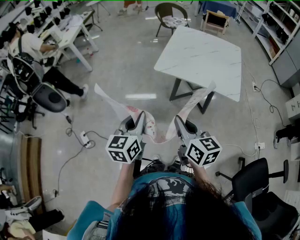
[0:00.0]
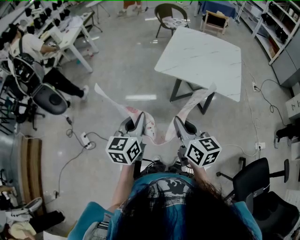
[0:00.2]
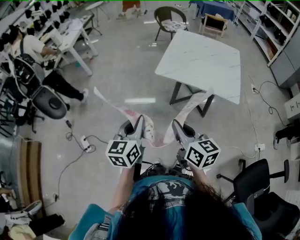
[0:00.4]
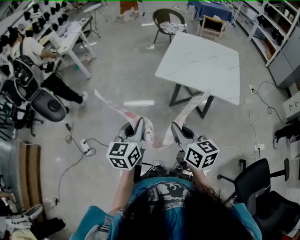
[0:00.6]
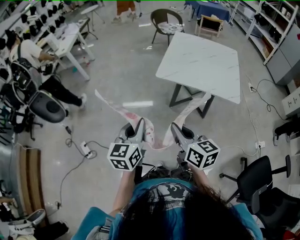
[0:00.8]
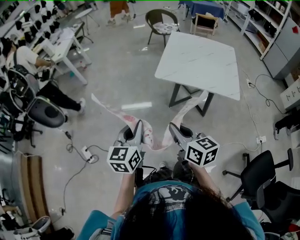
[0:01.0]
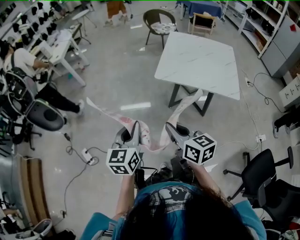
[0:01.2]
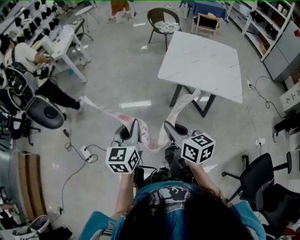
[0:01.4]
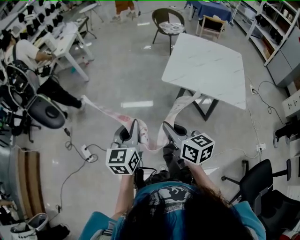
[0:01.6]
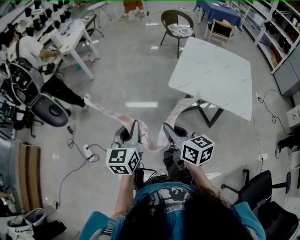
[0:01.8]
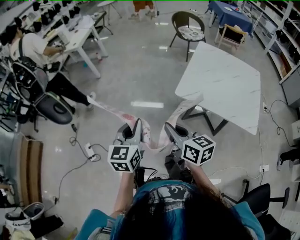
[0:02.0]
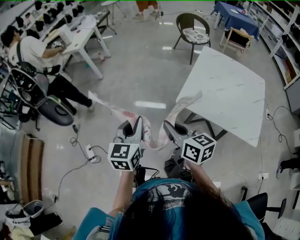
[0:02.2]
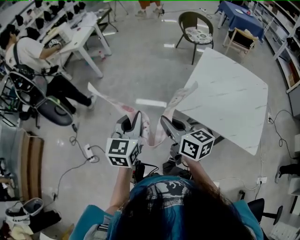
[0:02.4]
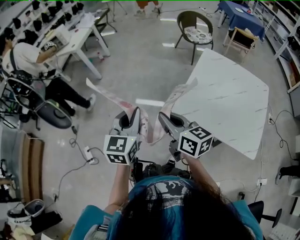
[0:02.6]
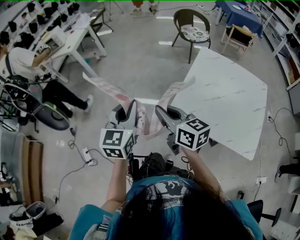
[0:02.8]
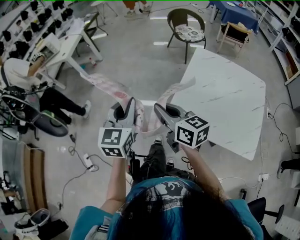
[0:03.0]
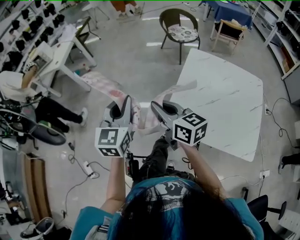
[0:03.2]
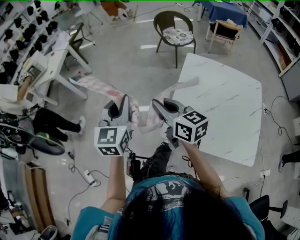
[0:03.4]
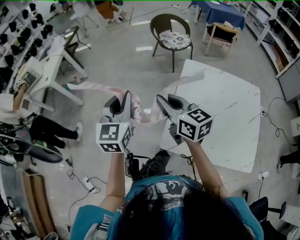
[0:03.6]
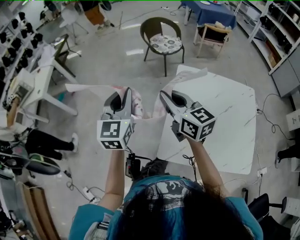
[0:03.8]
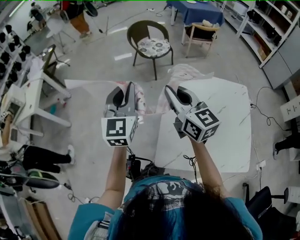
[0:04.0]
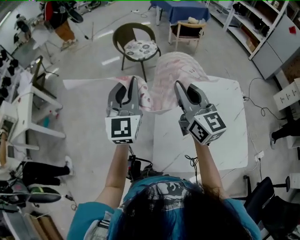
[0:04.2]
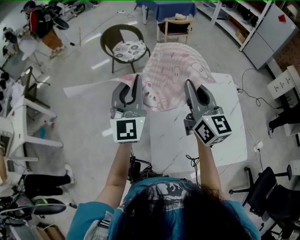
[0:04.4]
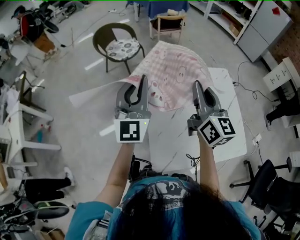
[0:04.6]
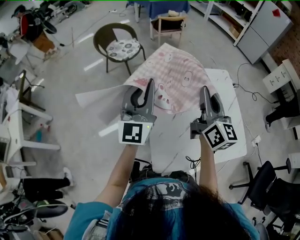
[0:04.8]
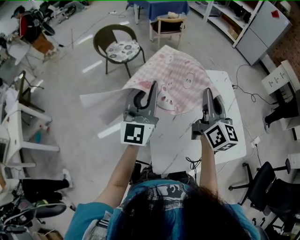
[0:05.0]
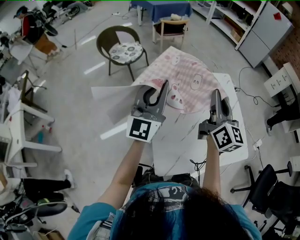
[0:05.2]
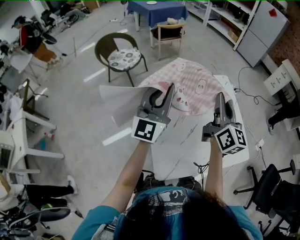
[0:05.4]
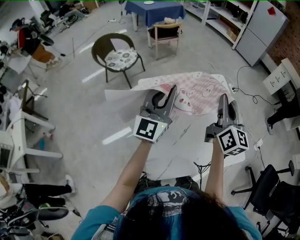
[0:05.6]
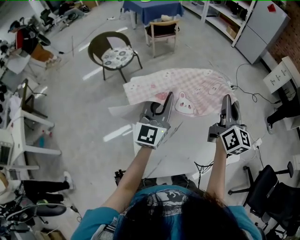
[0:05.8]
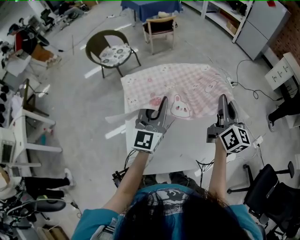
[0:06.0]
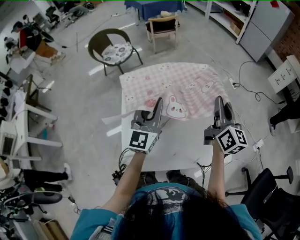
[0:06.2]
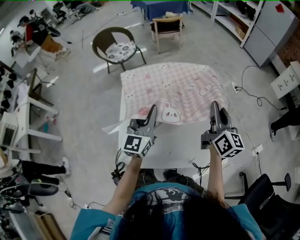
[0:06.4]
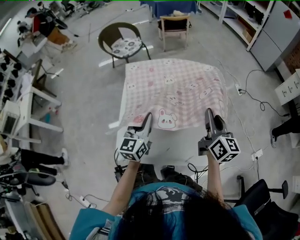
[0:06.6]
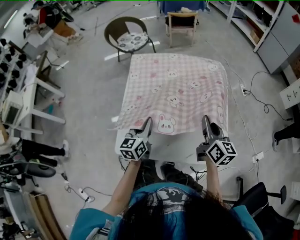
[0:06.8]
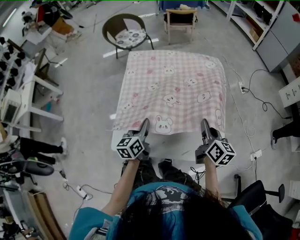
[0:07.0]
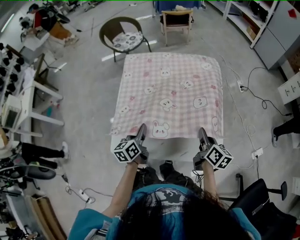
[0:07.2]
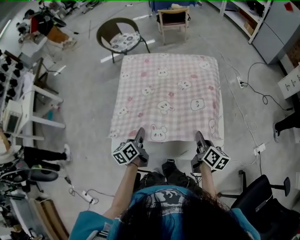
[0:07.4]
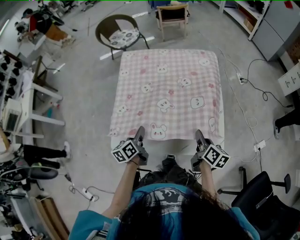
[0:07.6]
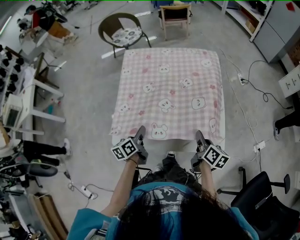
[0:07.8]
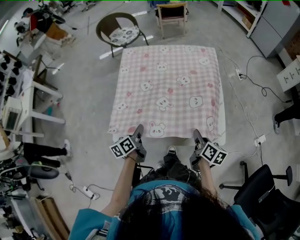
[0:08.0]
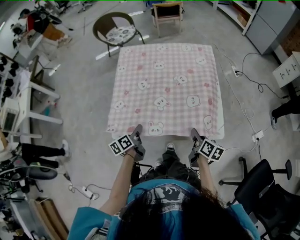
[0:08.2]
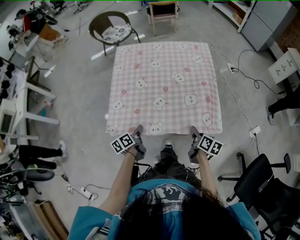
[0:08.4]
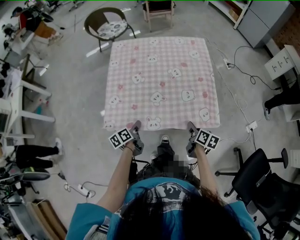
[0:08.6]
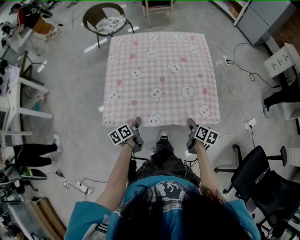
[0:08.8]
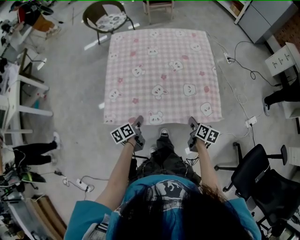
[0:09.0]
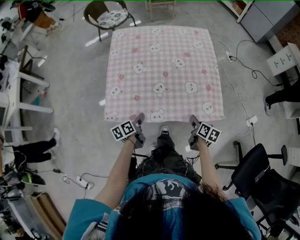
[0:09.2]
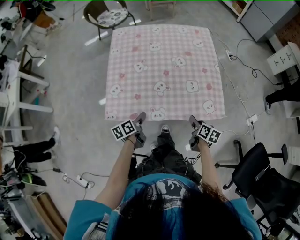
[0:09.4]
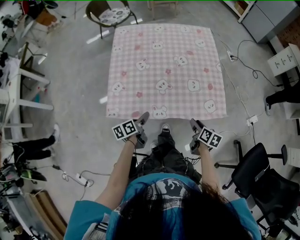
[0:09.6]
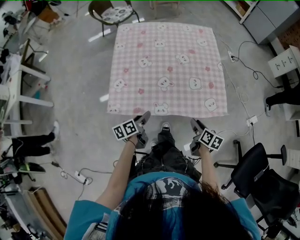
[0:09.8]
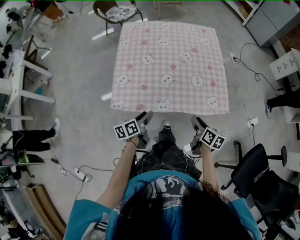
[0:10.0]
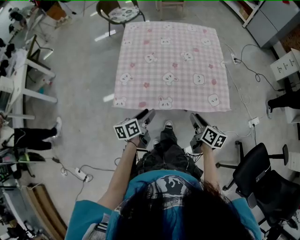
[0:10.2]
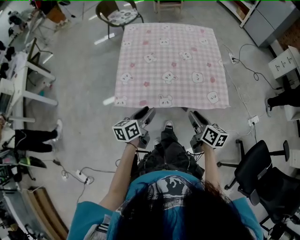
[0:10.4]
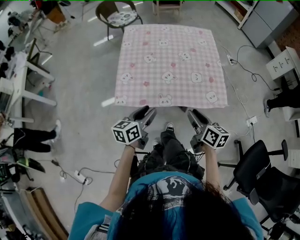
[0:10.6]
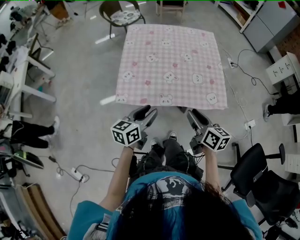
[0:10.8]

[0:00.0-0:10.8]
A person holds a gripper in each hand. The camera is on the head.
0:00.0 to 0:01.6: The grippers both shift to the left and forward by roughly 10 cm.
0:01.6 to 0:03.0: The left gripper heads forward and to the right, covering about 30 cm. The right gripper goes roughly 30 cm forward.
0:03.0 to 0:04.6: The right gripper moves about 40 cm, and rotates about 60 degrees, while the left gripper changes place by some 40 cm, and points its fingers approximately 30 degrees further upward.
0:04.6 to 0:06.2: The left gripper is displaced to the right and downward by some 25 cm. Meanwhile the right gripper is displaced to the right by approximately 25 cm.
0:06.2 to 0:07.8: The grippers both shift downward and backward by approximately 30 cm. The left gripper rolls counterclockwise, seen from behind, by approximately 50 degrees. The right gripper changes its angle by some 40 degrees.
0:07.8 to 0:09.2: Both grippers move downward and backward, some 10 cm.
0:09.2 to 0:10.8: The left gripper heads upward and backward, covering approximately 20 cm, rotates about 40 degrees, and opens up. The right gripper shifts approximately 25 cm upward, to the left and backward, and turns by approximately 30 degrees.

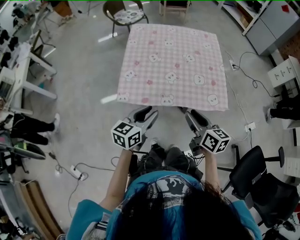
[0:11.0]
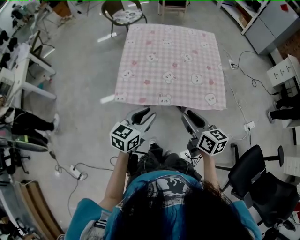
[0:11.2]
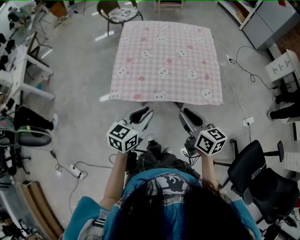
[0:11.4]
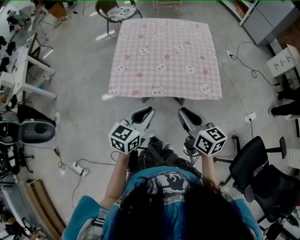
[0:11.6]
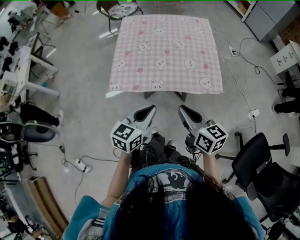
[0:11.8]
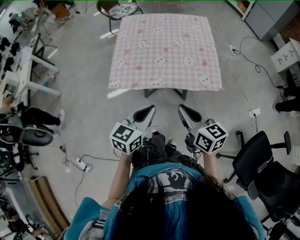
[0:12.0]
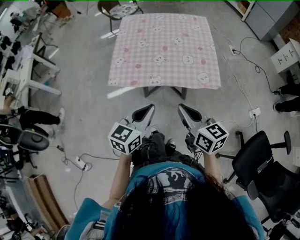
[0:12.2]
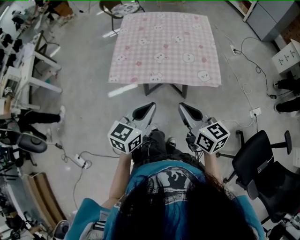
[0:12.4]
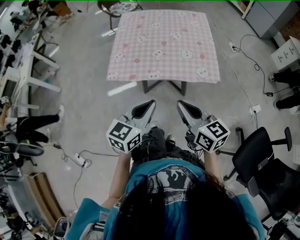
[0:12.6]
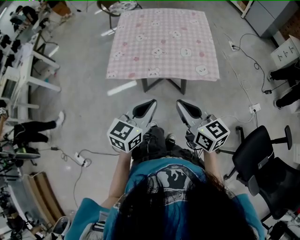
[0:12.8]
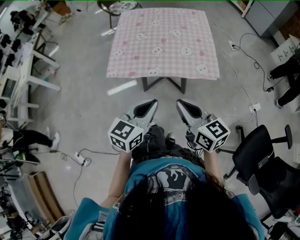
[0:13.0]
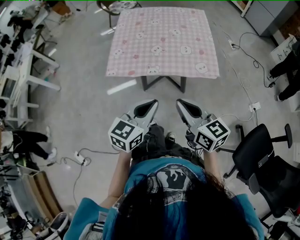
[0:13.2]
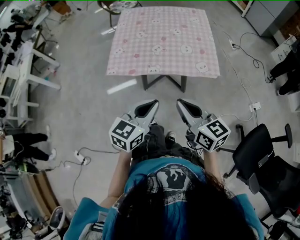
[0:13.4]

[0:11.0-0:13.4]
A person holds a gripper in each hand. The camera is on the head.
0:11.0 to 0:12.2: The left gripper heads backward and to the right, covering about 10 cm, and closes up, while the right gripper travels backward by some 10 cm, and closes.
0:12.2 to 0:13.4: The left gripper moves some 5 cm.

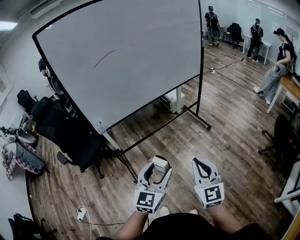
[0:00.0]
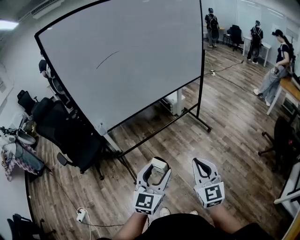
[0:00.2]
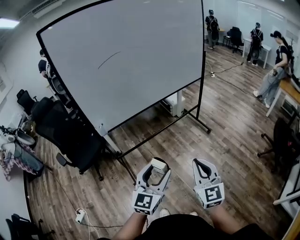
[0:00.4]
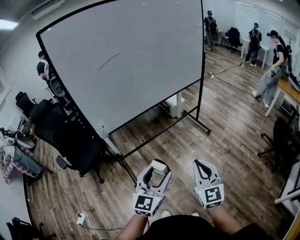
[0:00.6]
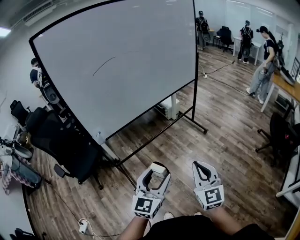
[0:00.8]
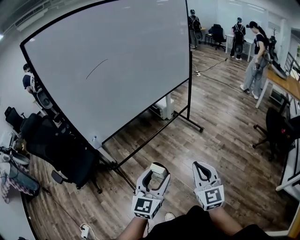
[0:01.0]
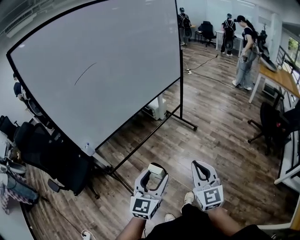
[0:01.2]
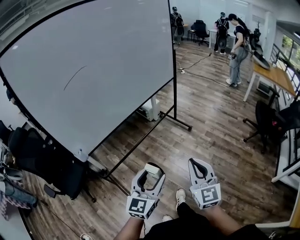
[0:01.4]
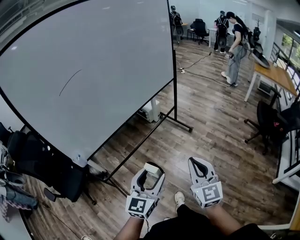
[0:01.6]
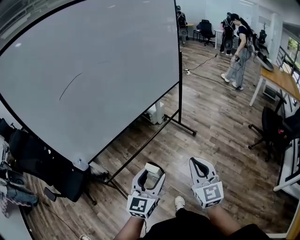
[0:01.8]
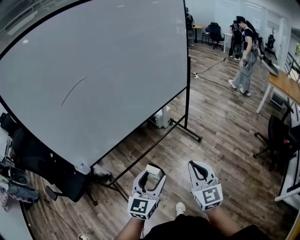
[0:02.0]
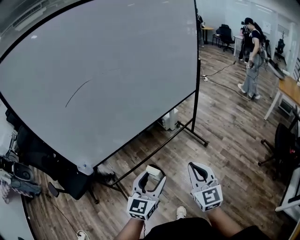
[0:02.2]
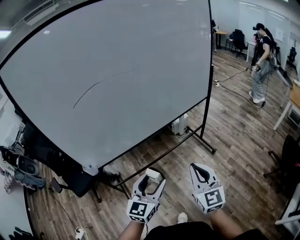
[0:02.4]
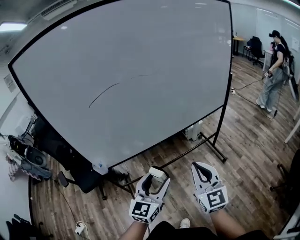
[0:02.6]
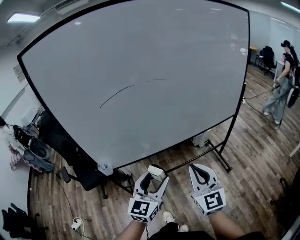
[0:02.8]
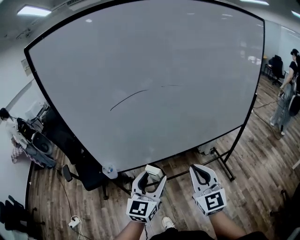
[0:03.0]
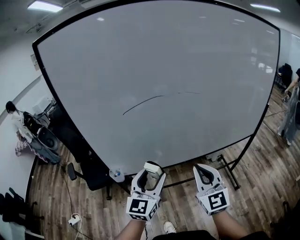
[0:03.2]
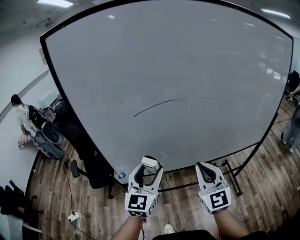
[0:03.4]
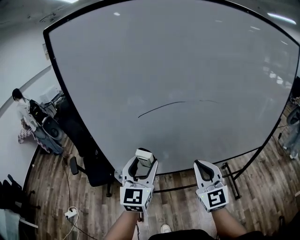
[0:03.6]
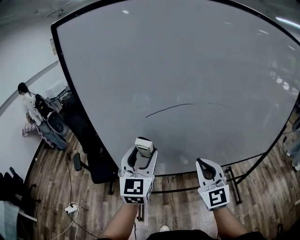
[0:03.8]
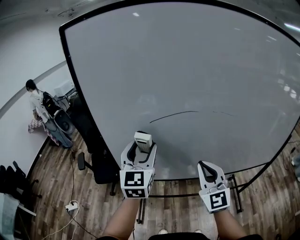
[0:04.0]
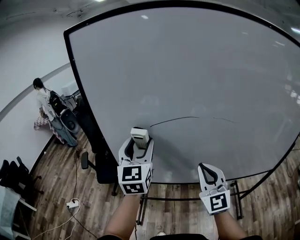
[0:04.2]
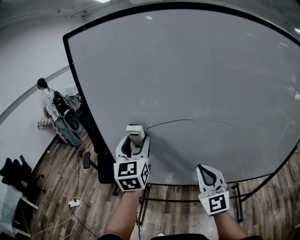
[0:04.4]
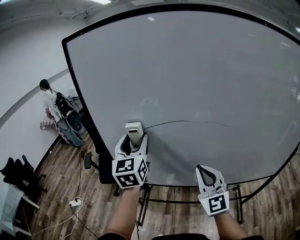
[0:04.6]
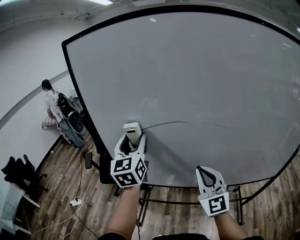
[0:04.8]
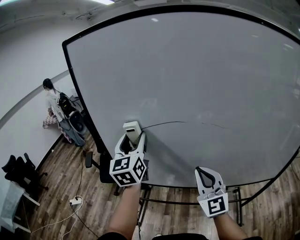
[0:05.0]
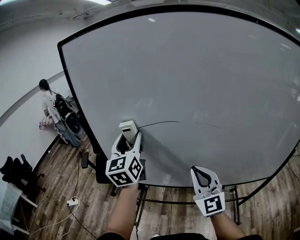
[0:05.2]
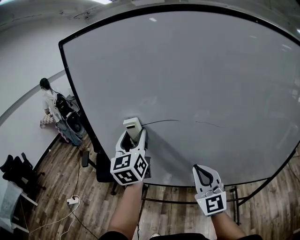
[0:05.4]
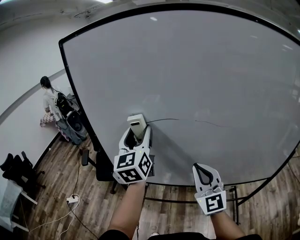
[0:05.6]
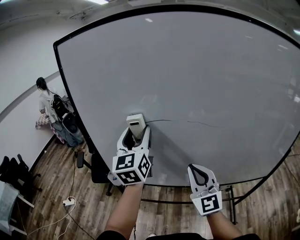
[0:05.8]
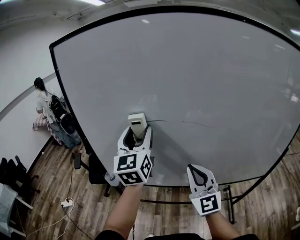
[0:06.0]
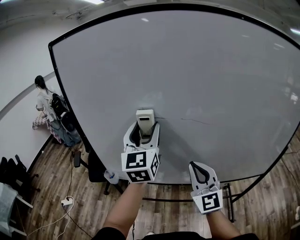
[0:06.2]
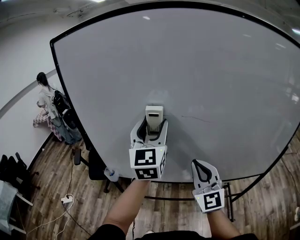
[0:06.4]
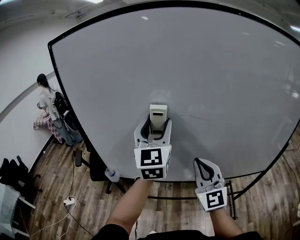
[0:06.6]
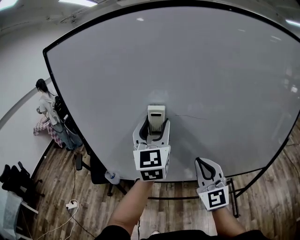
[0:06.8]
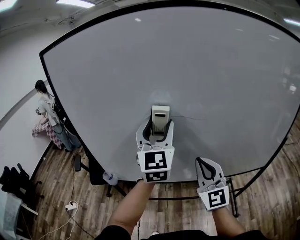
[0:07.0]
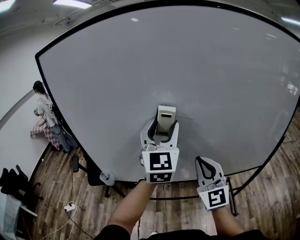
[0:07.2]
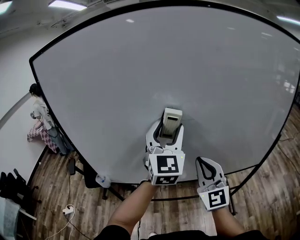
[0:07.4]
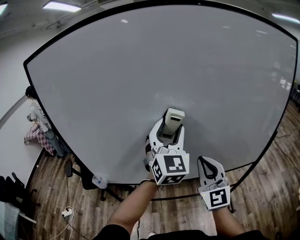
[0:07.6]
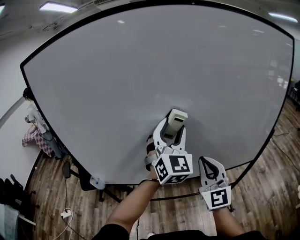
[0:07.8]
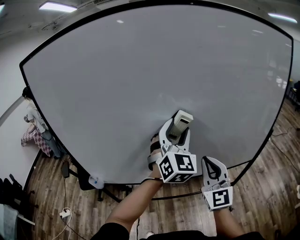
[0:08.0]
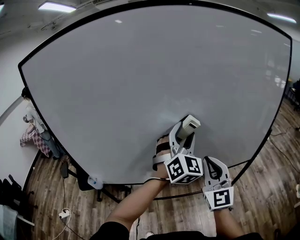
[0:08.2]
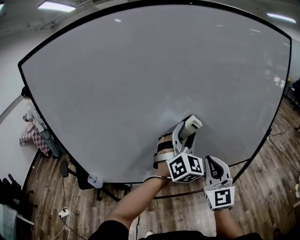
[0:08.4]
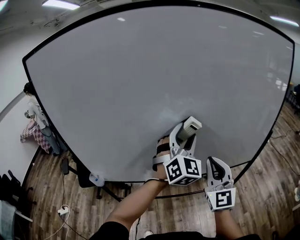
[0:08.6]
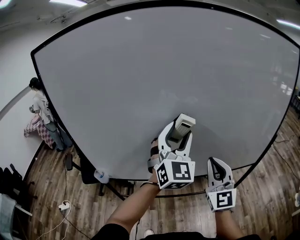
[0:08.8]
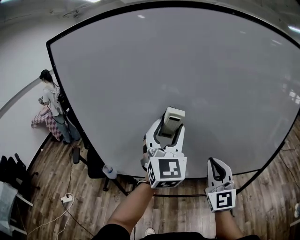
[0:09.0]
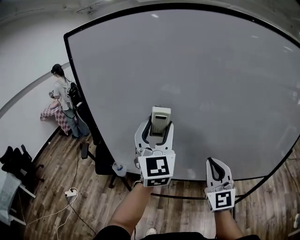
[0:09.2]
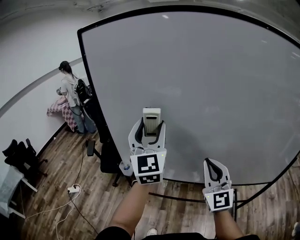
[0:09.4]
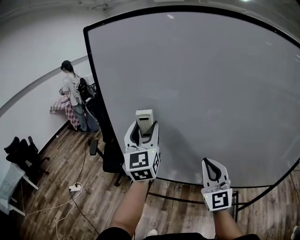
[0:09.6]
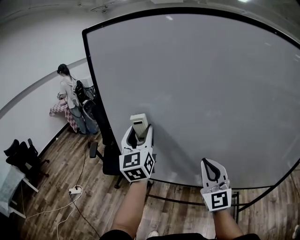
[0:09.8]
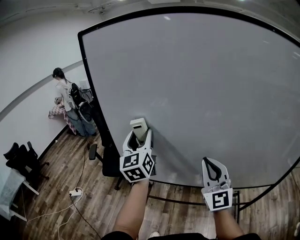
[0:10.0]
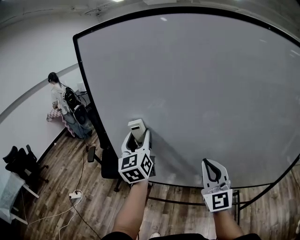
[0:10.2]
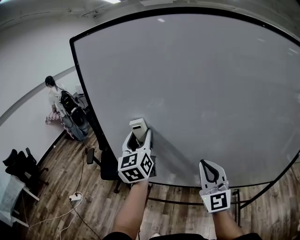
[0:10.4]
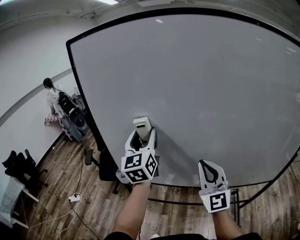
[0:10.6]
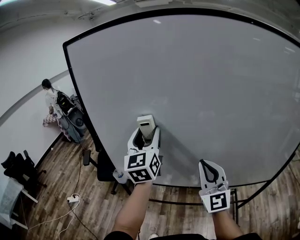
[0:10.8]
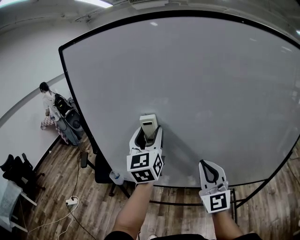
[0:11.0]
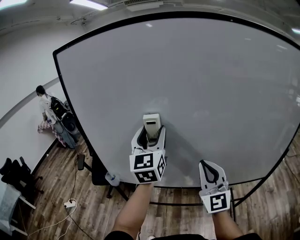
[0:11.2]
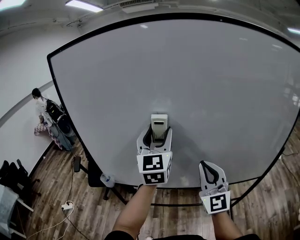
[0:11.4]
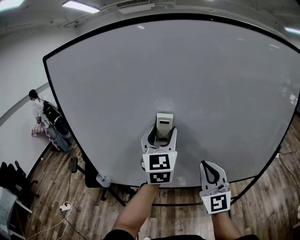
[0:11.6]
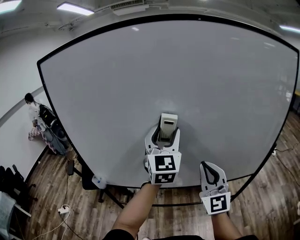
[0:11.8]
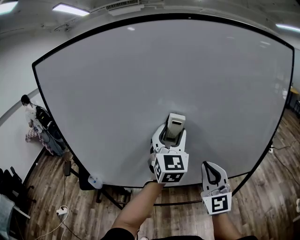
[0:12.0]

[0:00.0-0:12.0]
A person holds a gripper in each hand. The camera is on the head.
0:00.0 to 0:01.6: The two grippers go approximately 10 cm forward.
0:01.6 to 0:03.0: The right gripper moves about 35 cm, and rotates approximately 40 degrees. Meanwhile the left gripper moves about 30 cm, and changes its angle by roughly 40 degrees.
0:03.0 to 0:04.4: The left gripper changes place by about 30 cm, and turns by roughly 40 degrees; the right gripper ends up about 20 cm from where it was, and swivels some 20 degrees.
0:04.4 to 0:06.0: The right gripper is displaced to the right by roughly 5 cm. The left gripper shifts approximately 10 cm to the right.
0:06.0 to 0:07.6: The left gripper travels to the right by approximately 25 cm, and rotates roughly 30 degrees. The right gripper shifts about 15 cm to the right.
0:07.6 to 0:09.0: The left gripper moves to the left and backward, about 10 cm. The right gripper reaches approximately 5 cm to the right, then returns.
0:09.0 to 0:10.4: The left gripper heads to the left and forward, covering about 25 cm, and swivels about 40 degrees; the right gripper moves to the left and forward, about 15 cm.
0:10.4 to 0:12.0: The left gripper goes some 35 cm to the right, and turns by some 40 degrees; the right gripper goes some 20 cm to the right and backward.
